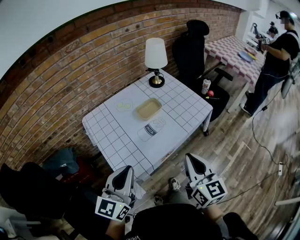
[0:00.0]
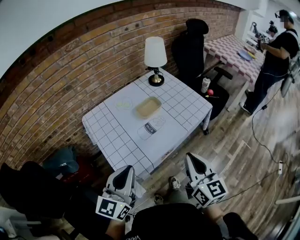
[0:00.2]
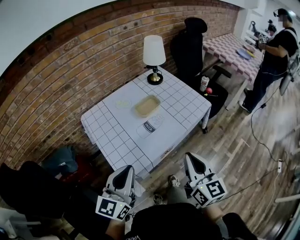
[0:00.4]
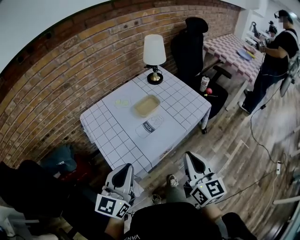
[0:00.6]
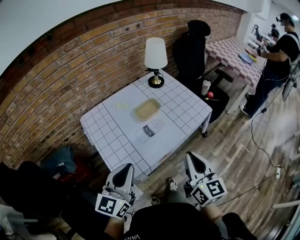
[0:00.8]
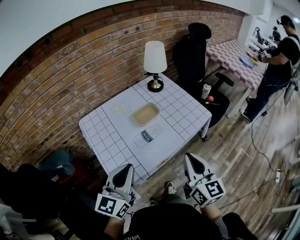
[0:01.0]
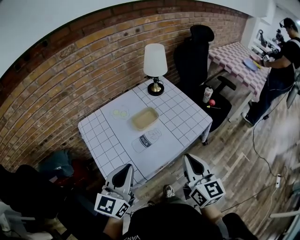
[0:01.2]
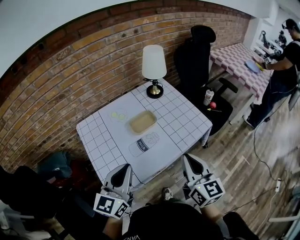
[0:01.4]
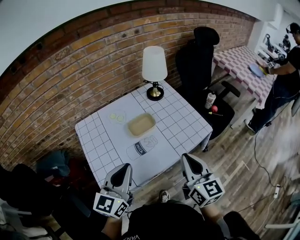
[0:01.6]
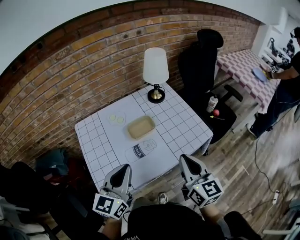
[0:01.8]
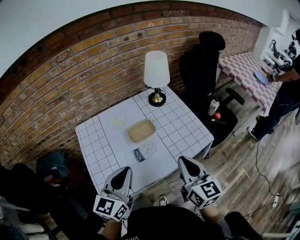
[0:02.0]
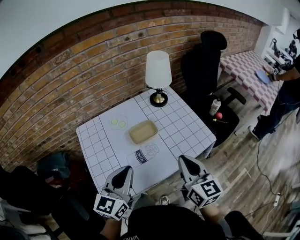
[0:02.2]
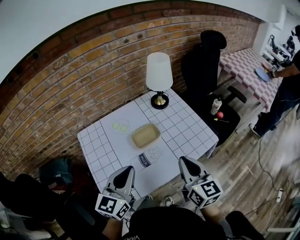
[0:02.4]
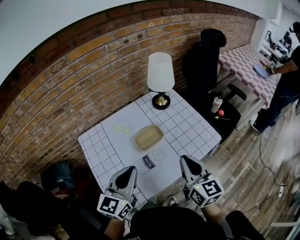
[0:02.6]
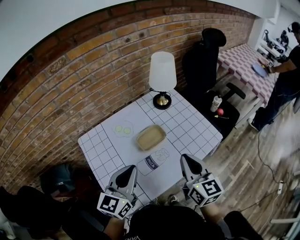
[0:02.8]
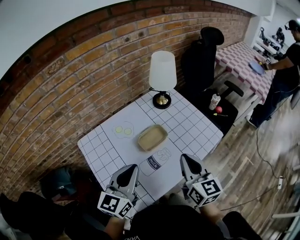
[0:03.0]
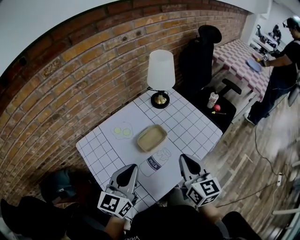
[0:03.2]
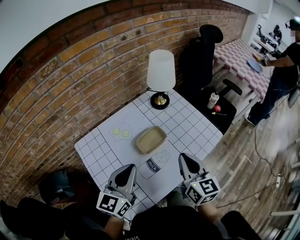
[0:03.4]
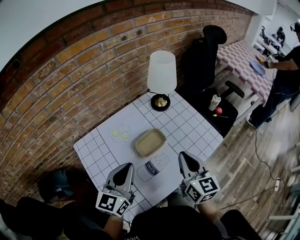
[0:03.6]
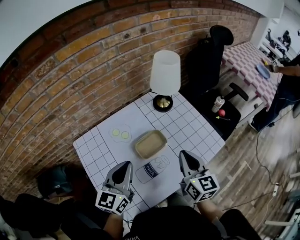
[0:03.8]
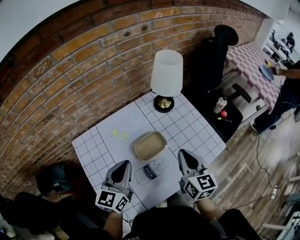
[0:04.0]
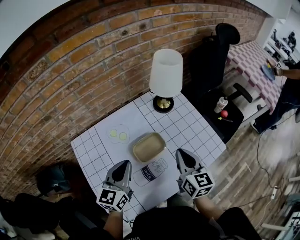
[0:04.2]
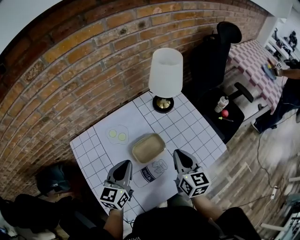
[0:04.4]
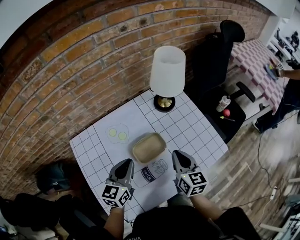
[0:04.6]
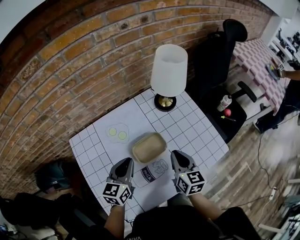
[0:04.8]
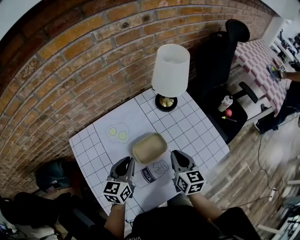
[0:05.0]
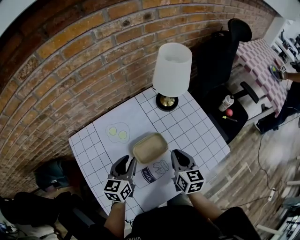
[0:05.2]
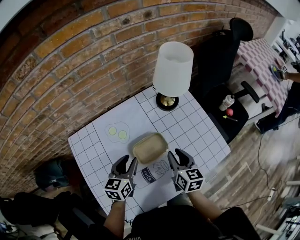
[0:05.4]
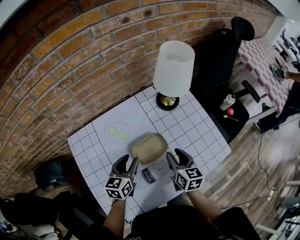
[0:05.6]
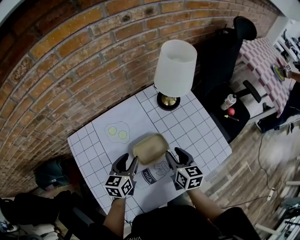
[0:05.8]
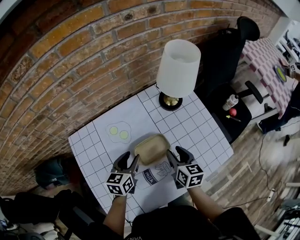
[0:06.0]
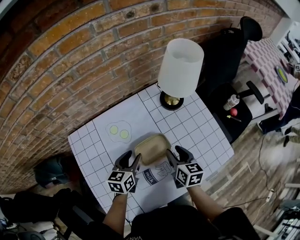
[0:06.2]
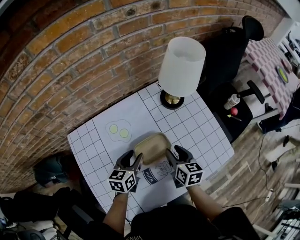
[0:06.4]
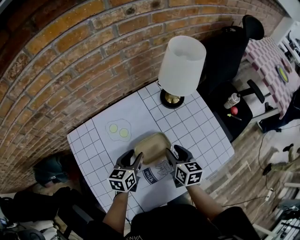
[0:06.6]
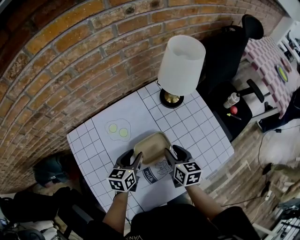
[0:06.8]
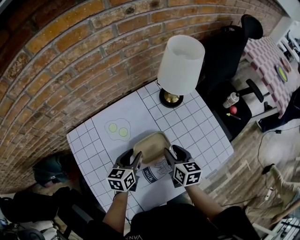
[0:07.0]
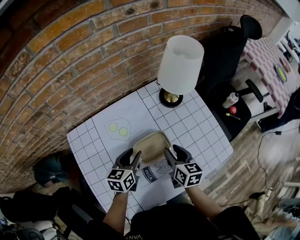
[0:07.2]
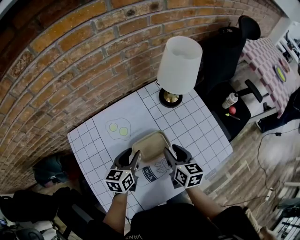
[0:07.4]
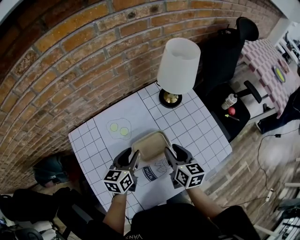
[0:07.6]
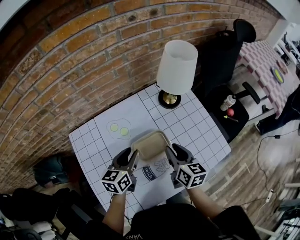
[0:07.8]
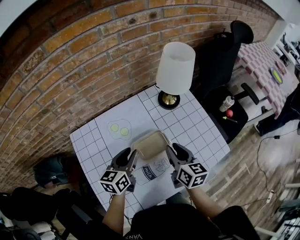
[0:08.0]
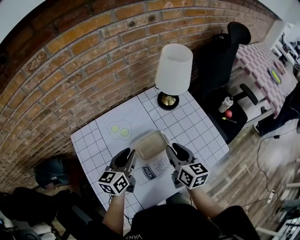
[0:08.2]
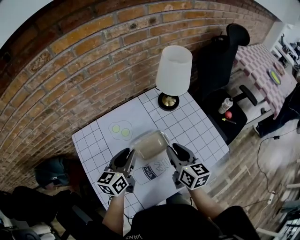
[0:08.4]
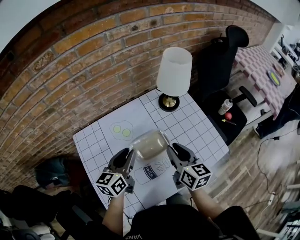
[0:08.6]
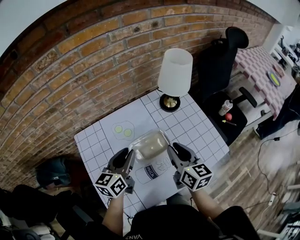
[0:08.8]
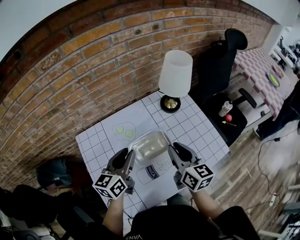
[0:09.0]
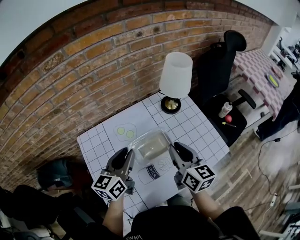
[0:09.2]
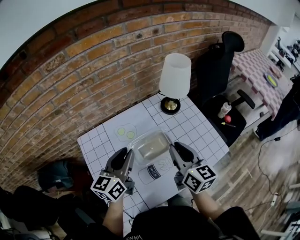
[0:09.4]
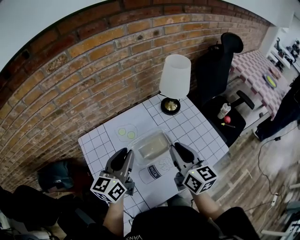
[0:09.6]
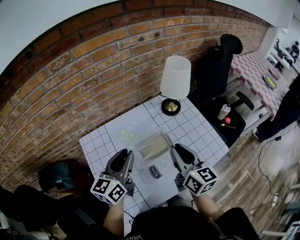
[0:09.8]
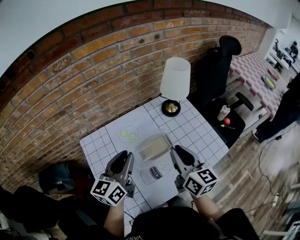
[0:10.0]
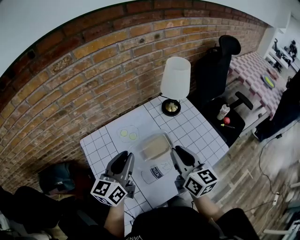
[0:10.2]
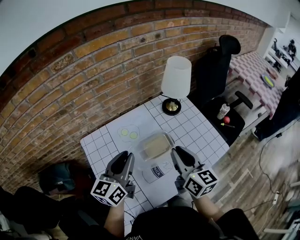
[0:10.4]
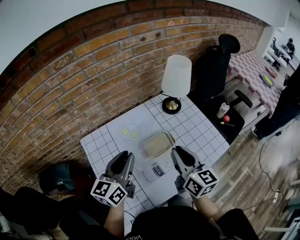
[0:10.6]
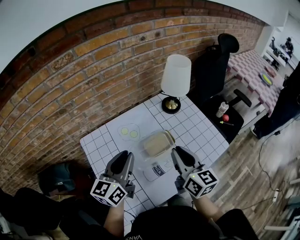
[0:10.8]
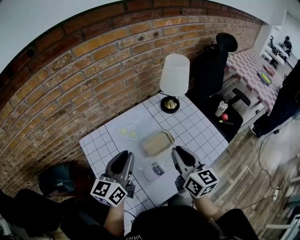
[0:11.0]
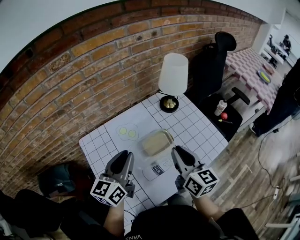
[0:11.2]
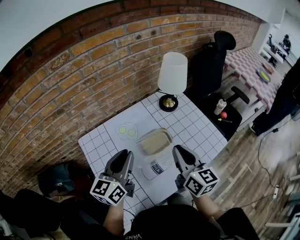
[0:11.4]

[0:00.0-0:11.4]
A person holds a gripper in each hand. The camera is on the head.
0:00.0 to 0:01.4: The left gripper moves forward and to the right, about 10 cm. The right gripper travels forward by roughly 10 cm.
0:01.4 to 0:02.8: The grippers both shift forward by about 10 cm.
0:02.8 to 0:04.2: The two grippers go about 15 cm forward and downward.
0:04.2 to 0:05.6: The two grippers go roughly 10 cm downward. The left gripper opens its fingers, while the right gripper opens its fingers.
0:05.6 to 0:07.2: The grippers make only small movements.
0:07.2 to 0:08.6: The grippers both shift upward by about 10 cm.
0:08.6 to 0:10.0: Both grippers move upward, approximately 10 cm.
0:10.0 to 0:11.4: The grippers stay close to where they were, moving slightly.

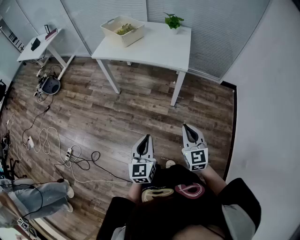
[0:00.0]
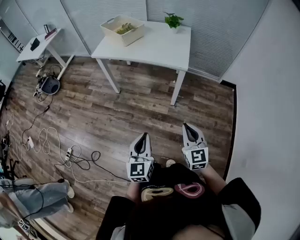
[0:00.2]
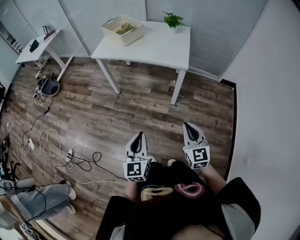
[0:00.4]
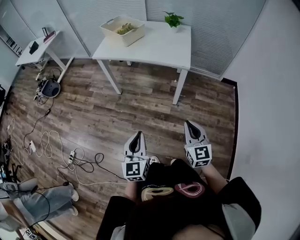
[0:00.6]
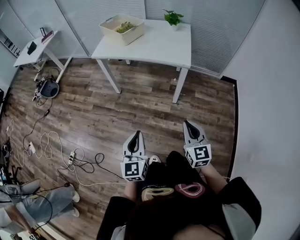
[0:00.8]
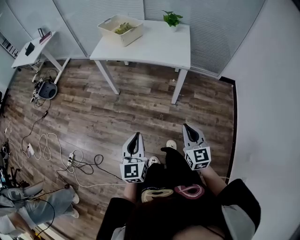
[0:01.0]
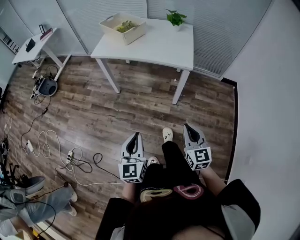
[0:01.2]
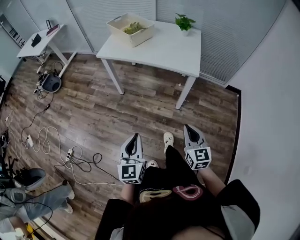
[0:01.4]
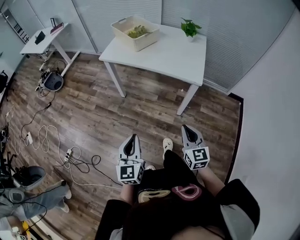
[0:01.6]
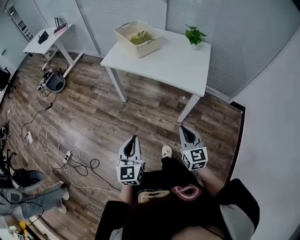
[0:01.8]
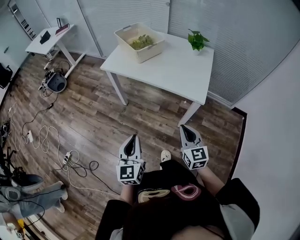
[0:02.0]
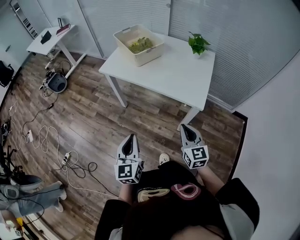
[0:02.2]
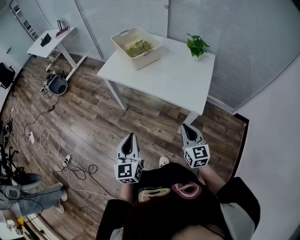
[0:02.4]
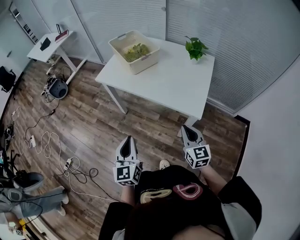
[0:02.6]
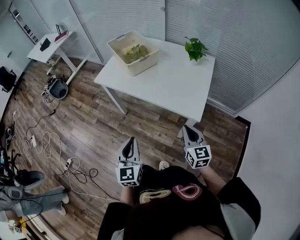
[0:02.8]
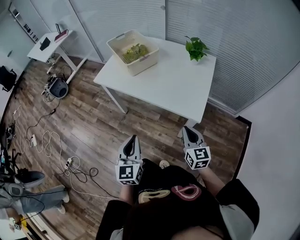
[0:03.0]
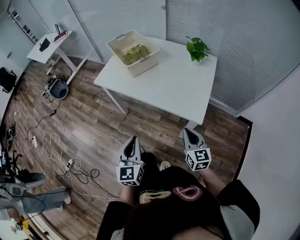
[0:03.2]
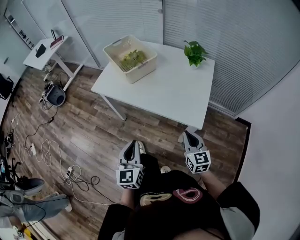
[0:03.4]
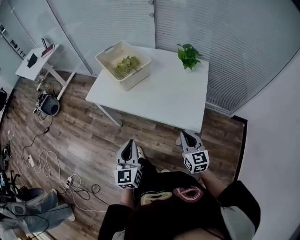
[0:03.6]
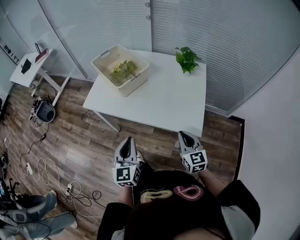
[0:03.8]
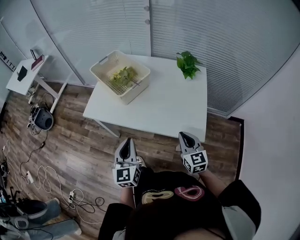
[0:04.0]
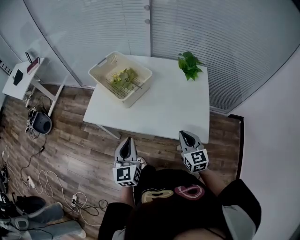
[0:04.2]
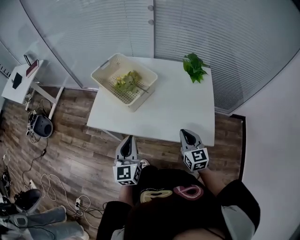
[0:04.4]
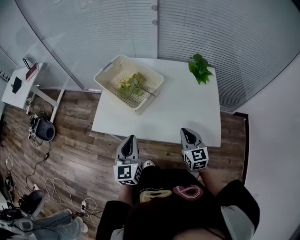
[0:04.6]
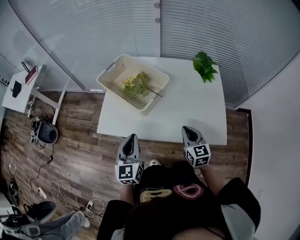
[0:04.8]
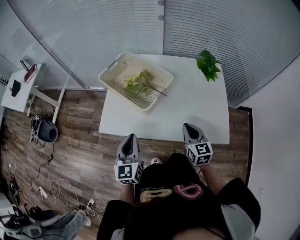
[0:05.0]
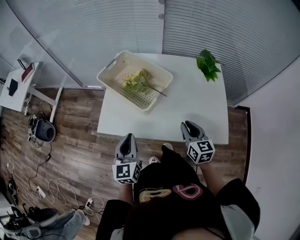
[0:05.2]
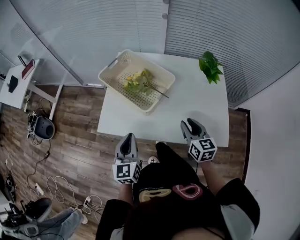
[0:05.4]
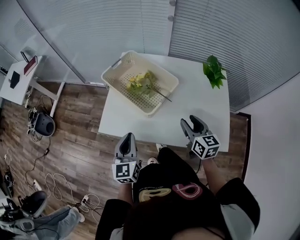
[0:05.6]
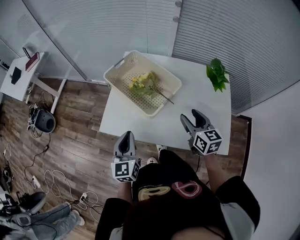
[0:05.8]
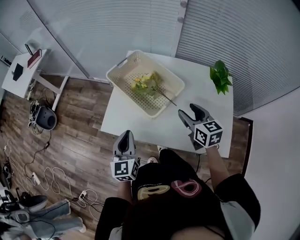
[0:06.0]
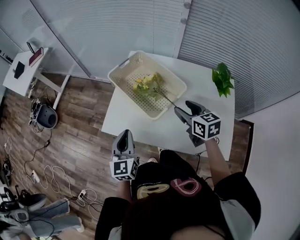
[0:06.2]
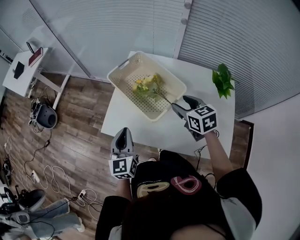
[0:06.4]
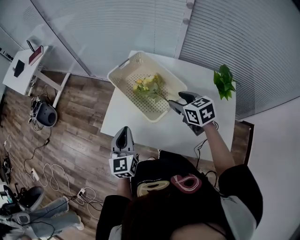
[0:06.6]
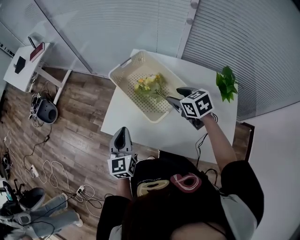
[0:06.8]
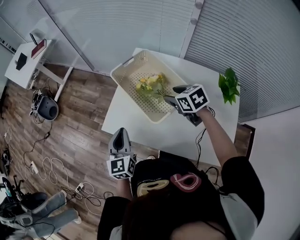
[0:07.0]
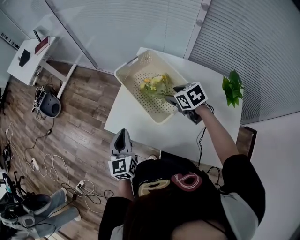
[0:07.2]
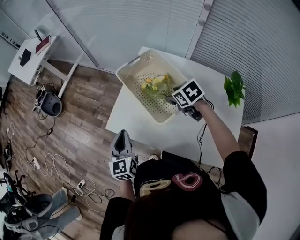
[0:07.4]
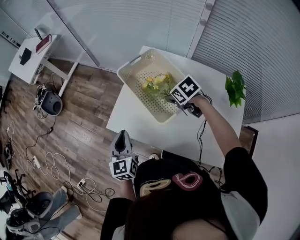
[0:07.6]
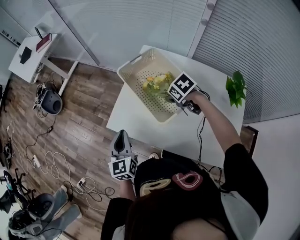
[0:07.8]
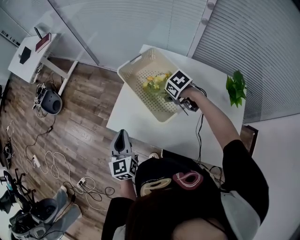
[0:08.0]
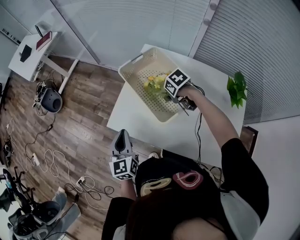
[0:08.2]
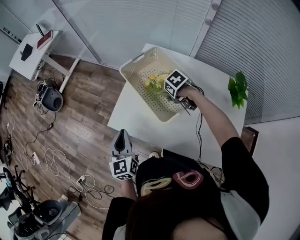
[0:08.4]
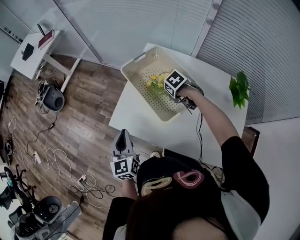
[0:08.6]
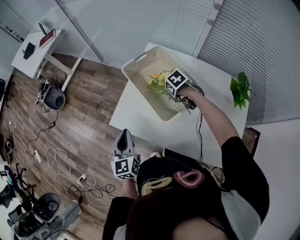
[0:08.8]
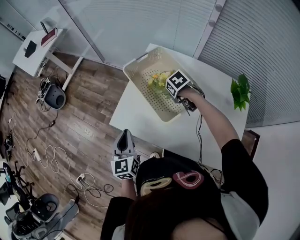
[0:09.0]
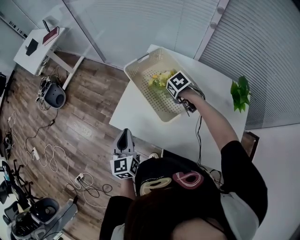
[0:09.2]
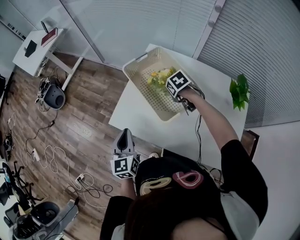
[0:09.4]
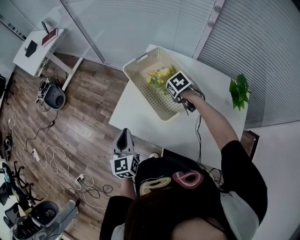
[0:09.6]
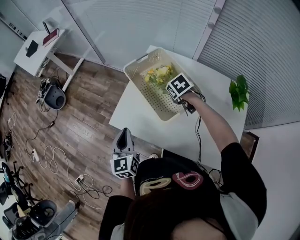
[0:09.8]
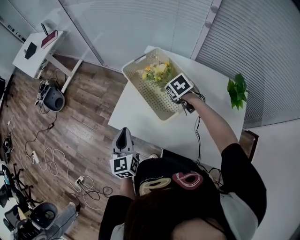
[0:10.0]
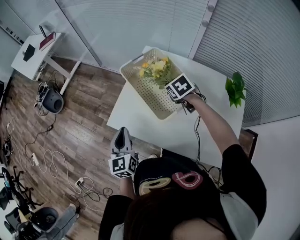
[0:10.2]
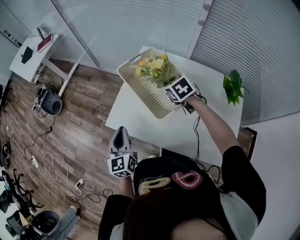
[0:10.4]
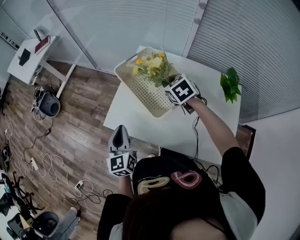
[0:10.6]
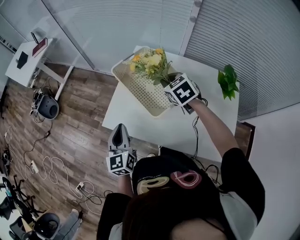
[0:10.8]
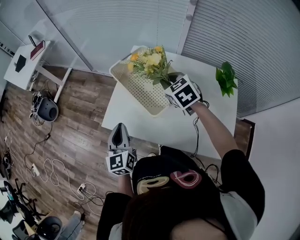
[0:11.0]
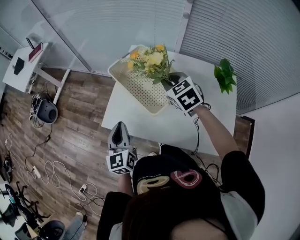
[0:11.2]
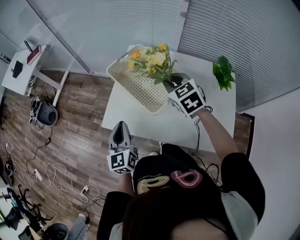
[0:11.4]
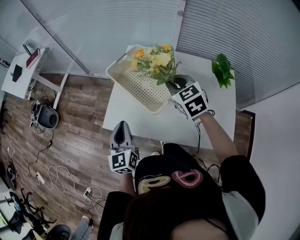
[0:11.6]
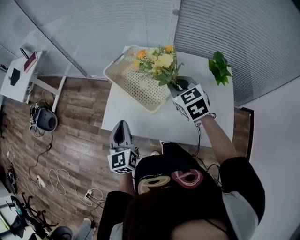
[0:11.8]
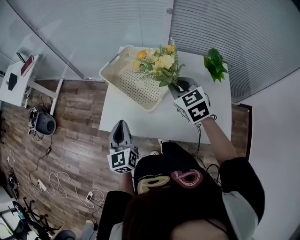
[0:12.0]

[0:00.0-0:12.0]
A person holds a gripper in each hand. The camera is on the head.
0:00.0 to 0:01.6: The grippers both shift forward and to the left by about 15 cm.
0:01.6 to 0:03.0: The grippers both shift forward and to the right by roughly 25 cm.
0:03.0 to 0:04.4: The right gripper shifts some 20 cm forward and to the left. Meanwhile the left gripper is displaced forward by some 25 cm.
0:04.4 to 0:06.0: The right gripper goes about 20 cm forward and to the left, and opens up; the left gripper is displaced to the left and forward by approximately 15 cm.
0:06.0 to 0:07.6: The left gripper moves approximately 5 cm. Meanwhile the right gripper ends up roughly 20 cm from where it was, and points its fingers some 40 degrees further downward.
0:07.6 to 0:09.0: The right gripper moves downward, some 5 cm, and closes.
0:09.0 to 0:10.4: The right gripper heads upward, covering roughly 10 cm, and changes its angle by about 30 degrees.
0:10.4 to 0:12.0: The right gripper goes some 15 cm backward and upward, and turns by roughly 20 degrees.
